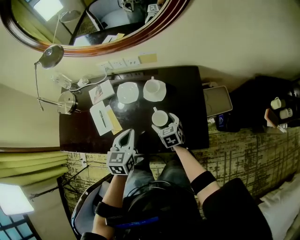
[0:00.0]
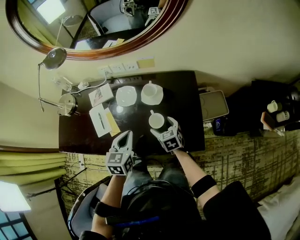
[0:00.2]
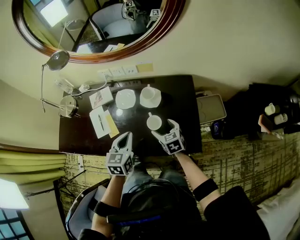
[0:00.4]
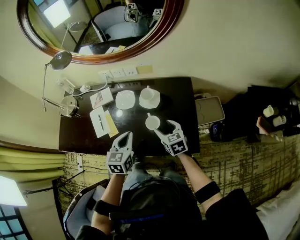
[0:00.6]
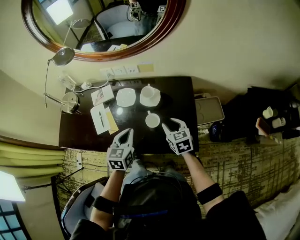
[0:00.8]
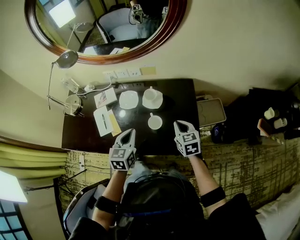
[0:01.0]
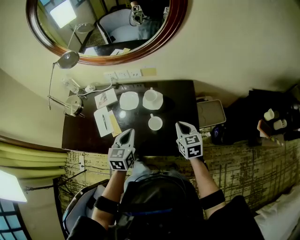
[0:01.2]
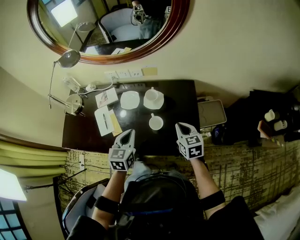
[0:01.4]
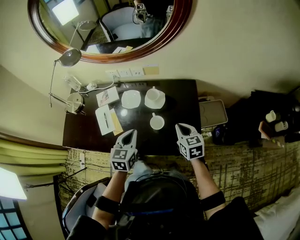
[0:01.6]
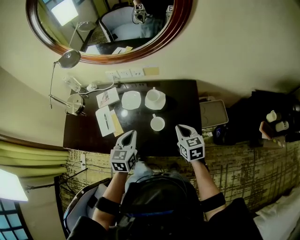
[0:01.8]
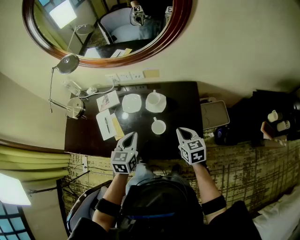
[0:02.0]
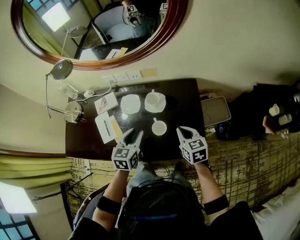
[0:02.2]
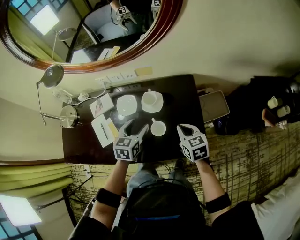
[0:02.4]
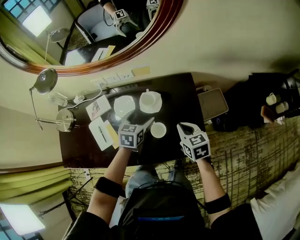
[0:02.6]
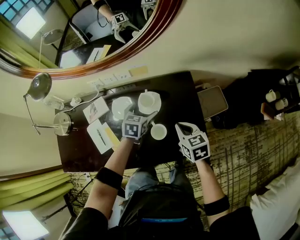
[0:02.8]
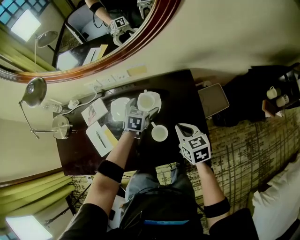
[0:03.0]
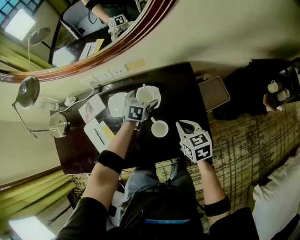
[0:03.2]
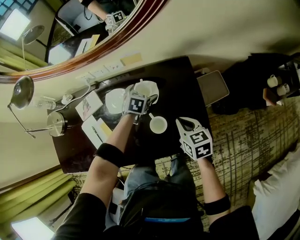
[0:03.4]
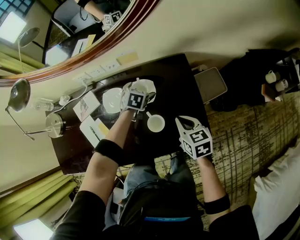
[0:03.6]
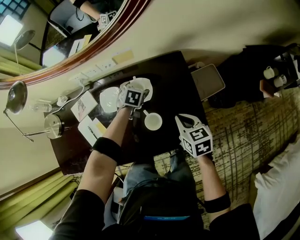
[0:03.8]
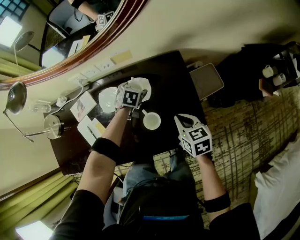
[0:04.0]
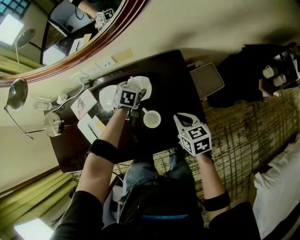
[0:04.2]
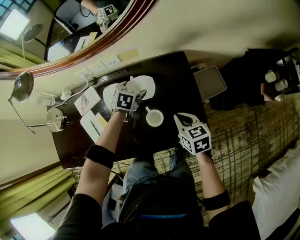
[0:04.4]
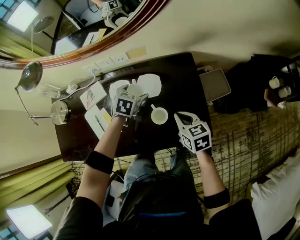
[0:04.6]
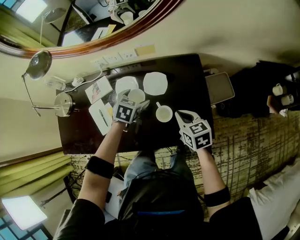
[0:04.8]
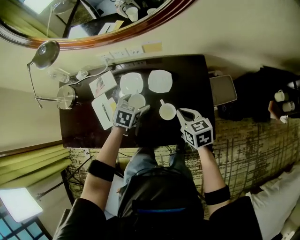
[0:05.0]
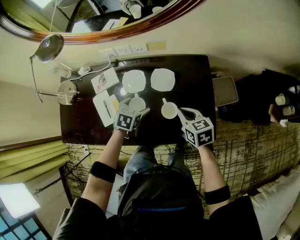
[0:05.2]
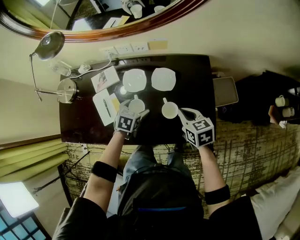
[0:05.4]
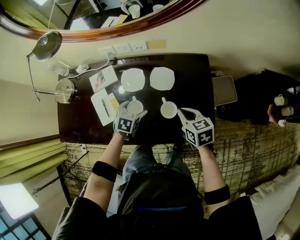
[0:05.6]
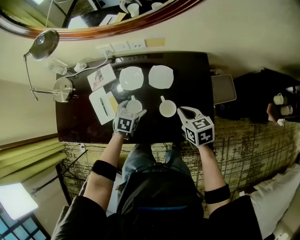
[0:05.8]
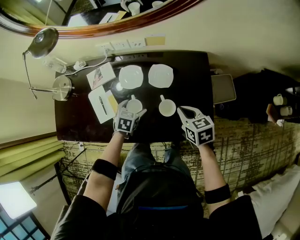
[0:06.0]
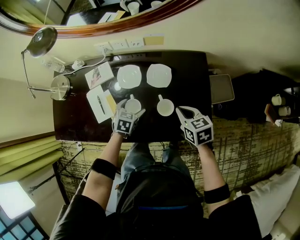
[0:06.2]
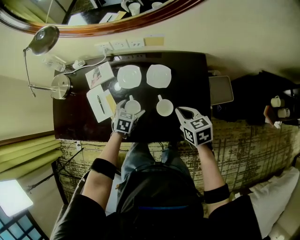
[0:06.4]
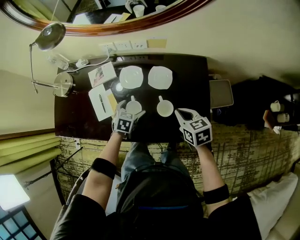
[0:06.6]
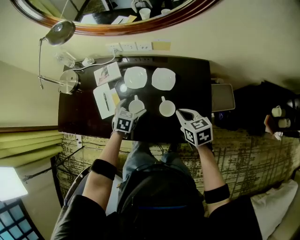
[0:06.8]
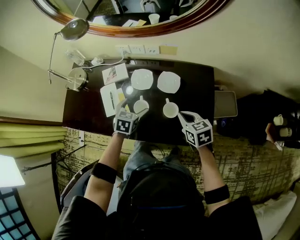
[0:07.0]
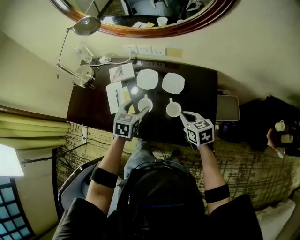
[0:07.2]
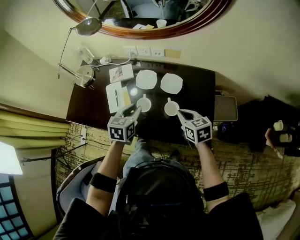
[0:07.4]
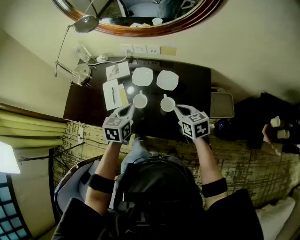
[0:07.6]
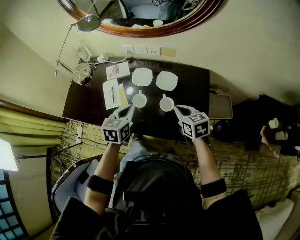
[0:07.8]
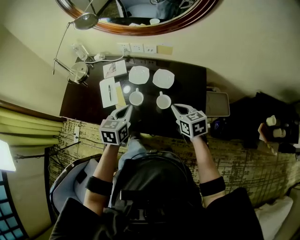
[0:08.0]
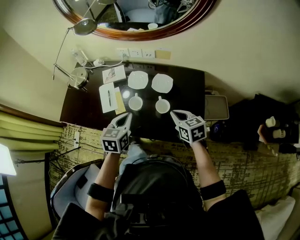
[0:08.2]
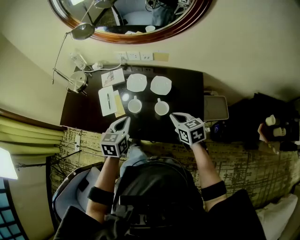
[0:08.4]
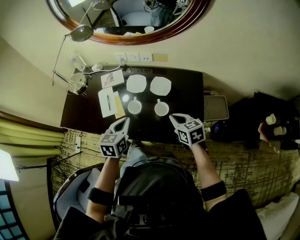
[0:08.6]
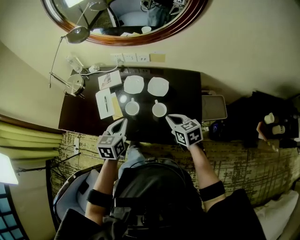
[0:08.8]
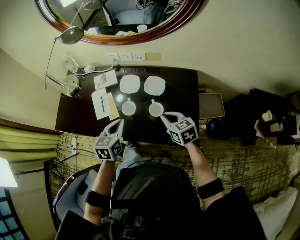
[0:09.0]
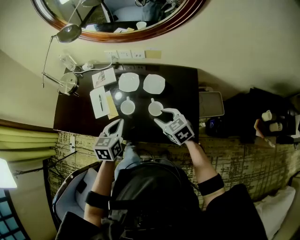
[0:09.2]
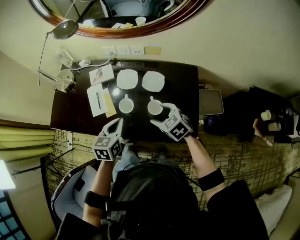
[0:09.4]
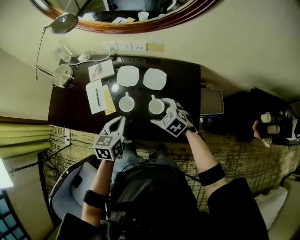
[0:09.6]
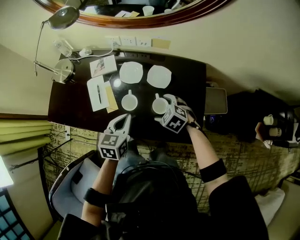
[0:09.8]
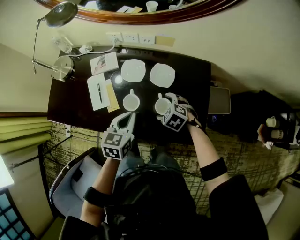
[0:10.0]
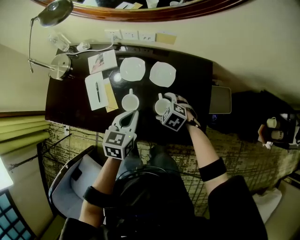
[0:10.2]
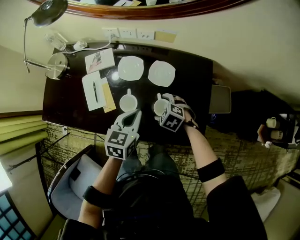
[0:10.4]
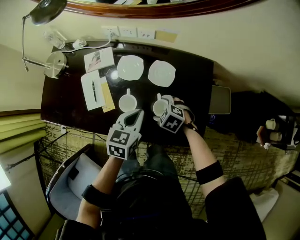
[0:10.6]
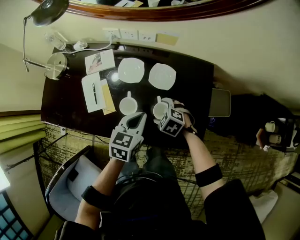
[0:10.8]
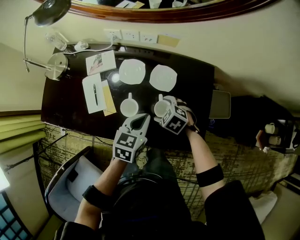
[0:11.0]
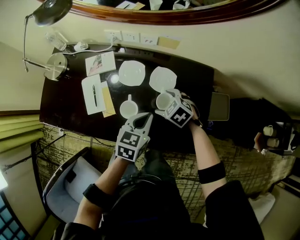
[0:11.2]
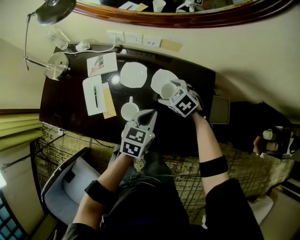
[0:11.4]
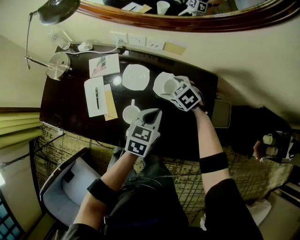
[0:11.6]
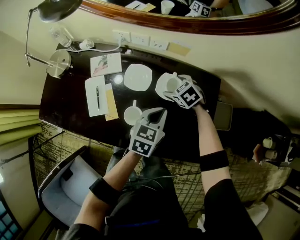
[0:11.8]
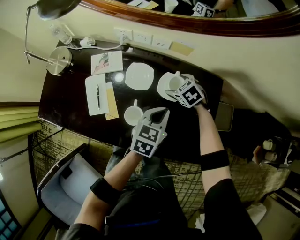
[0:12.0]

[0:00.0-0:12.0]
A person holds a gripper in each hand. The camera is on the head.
0:00.0 to 0:01.6: The left gripper shifts by about 5 cm, while the right gripper is displaced upward and to the right by some 20 cm, and closes.
0:01.6 to 0:03.0: The left gripper heads forward and downward, covering roughly 25 cm, rotates approximately 30 degrees, and opens its fingers; the right gripper is displaced forward by approximately 5 cm.
0:04.4 to 0:06.0: The left gripper heads backward and to the left, covering roughly 20 cm. Meanwhile the right gripper moves approximately 5 cm.
0:06.0 to 0:07.6: The left gripper goes approximately 20 cm upward and backward, rotates approximately 30 degrees, and closes its fingers, while the right gripper is displaced upward by about 5 cm.
0:07.6 to 0:09.0: The grippers make only small movements.
0:09.0 to 0:10.4: The left gripper goes approximately 10 cm to the right, downward and forward. The right gripper is displaced downward by approximately 20 cm, points its fingers some 30 degrees further downward, and opens its fingers.
0:10.4 to 0:12.0: The left gripper shifts approximately 10 cm to the right and forward, while the right gripper travels forward by approximately 20 cm.

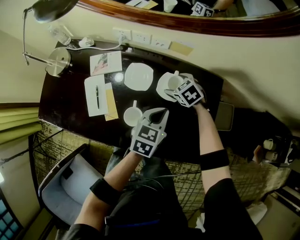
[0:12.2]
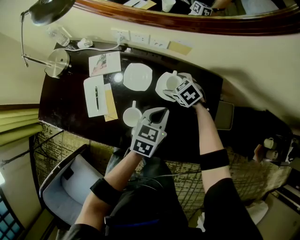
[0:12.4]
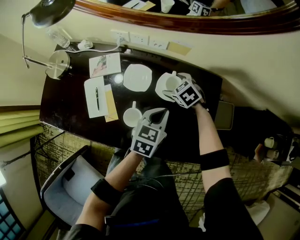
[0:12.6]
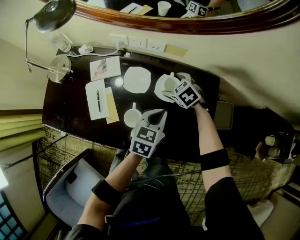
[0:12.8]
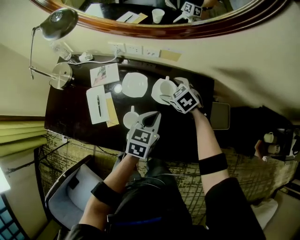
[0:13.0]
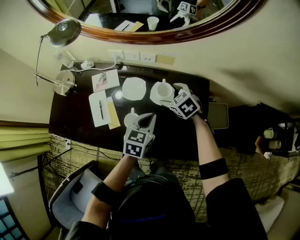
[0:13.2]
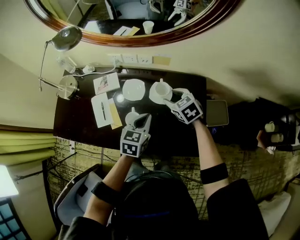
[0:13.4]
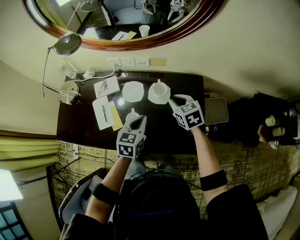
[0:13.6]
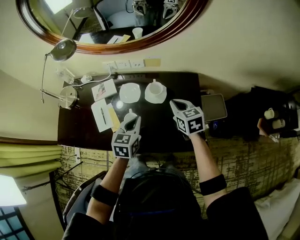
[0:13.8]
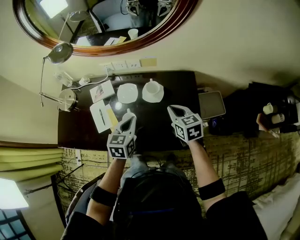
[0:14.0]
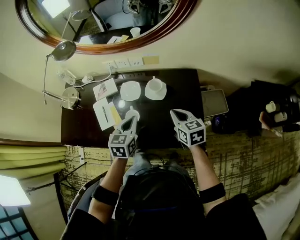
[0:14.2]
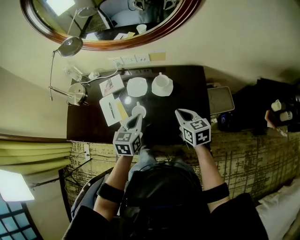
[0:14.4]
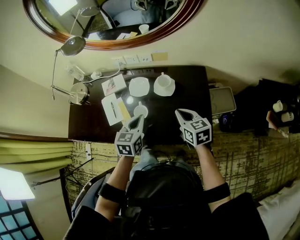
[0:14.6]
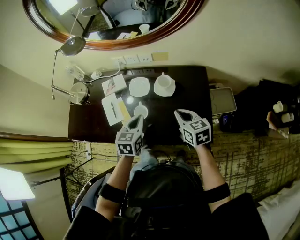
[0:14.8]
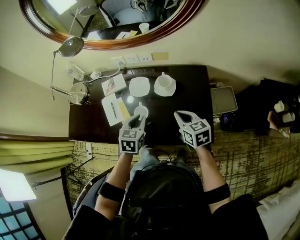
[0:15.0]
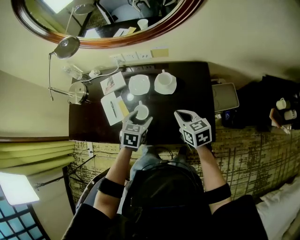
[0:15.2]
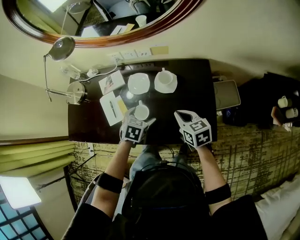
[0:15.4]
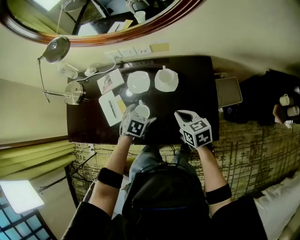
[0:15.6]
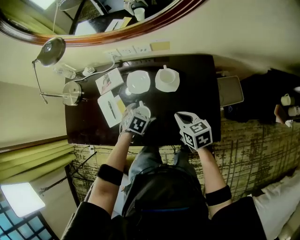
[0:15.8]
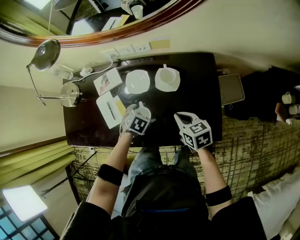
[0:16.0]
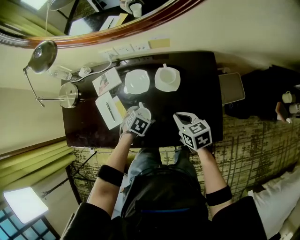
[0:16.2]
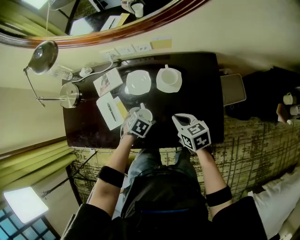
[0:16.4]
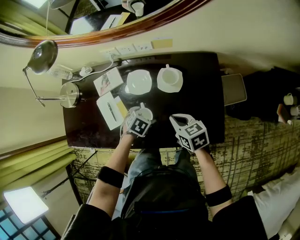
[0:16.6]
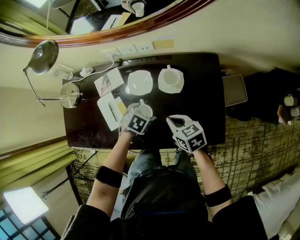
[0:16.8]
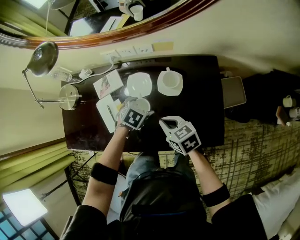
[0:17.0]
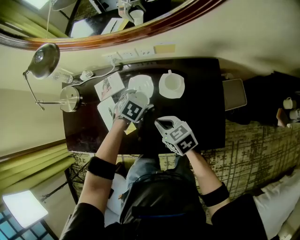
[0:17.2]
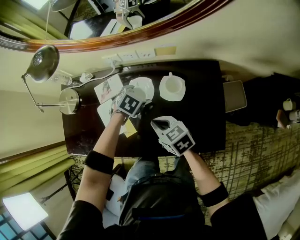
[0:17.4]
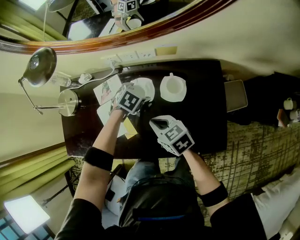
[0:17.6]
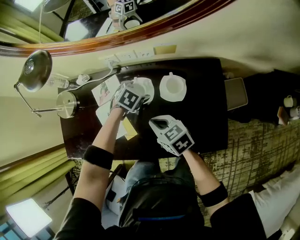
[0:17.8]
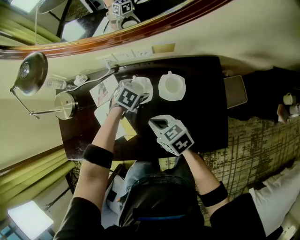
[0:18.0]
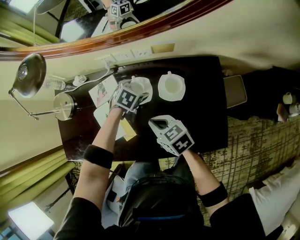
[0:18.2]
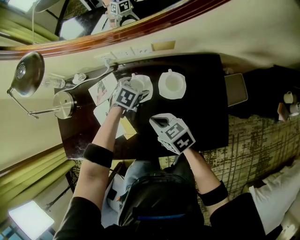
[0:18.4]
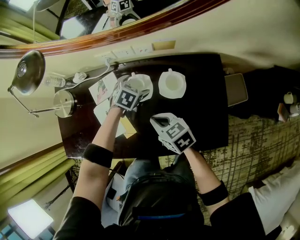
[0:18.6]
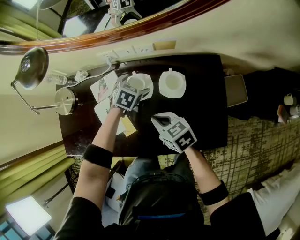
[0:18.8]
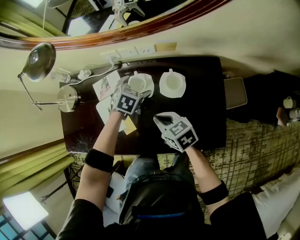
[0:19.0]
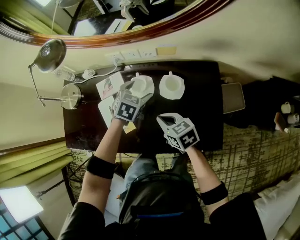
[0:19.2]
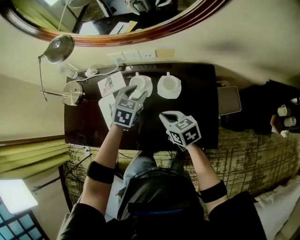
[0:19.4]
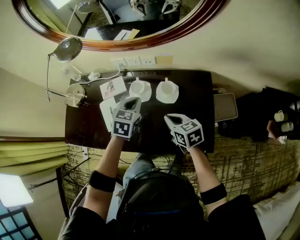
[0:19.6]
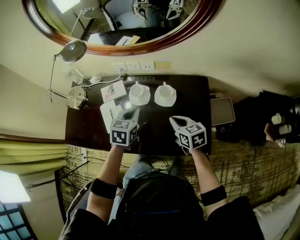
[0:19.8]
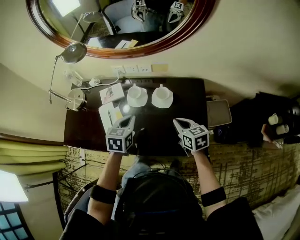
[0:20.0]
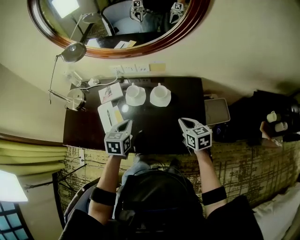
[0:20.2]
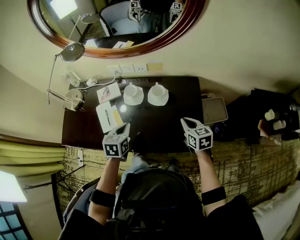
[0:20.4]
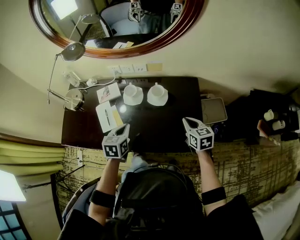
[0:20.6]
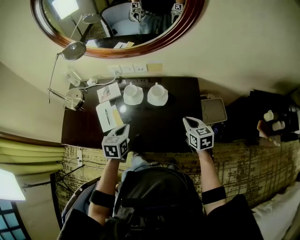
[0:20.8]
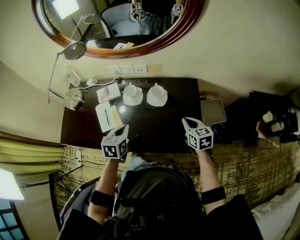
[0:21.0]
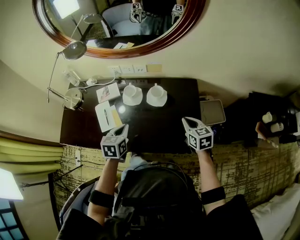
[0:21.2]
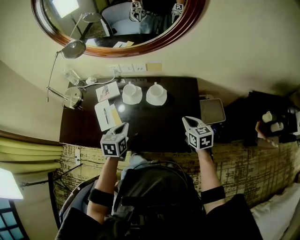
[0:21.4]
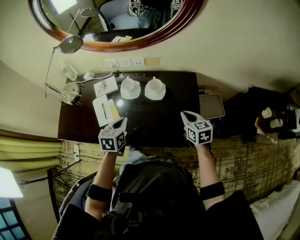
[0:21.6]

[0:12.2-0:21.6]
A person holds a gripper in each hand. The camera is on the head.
0:12.2 to 0:13.8: The left gripper is displaced upward, to the left and backward by approximately 10 cm; the right gripper moves upward and backward, approximately 25 cm, changes its angle by approximately 40 degrees, and closes up.
0:13.8 to 0:15.4: The right gripper heads backward, covering approximately 10 cm; the left gripper goes approximately 10 cm downward, swivels some 30 degrees, and opens its fingers.
0:15.4 to 0:17.0: The right gripper shifts approximately 10 cm to the left and downward, while the left gripper moves forward and downward, some 10 cm.
0:17.0 to 0:18.4: The right gripper shifts roughly 5 cm to the left and forward, while the left gripper is displaced forward by approximately 15 cm.
0:18.4 to 0:20.0: The right gripper moves to the right, backward and upward, about 20 cm. Meanwhile the left gripper goes approximately 25 cm backward and upward, changes its angle by roughly 40 degrees, and closes its fingers.
0:20.0 to 0:21.6: The left gripper ends up some 5 cm from where it was. Meanwhile the right gripper goes about 5 cm to the right.

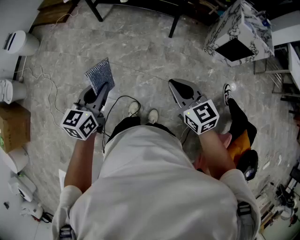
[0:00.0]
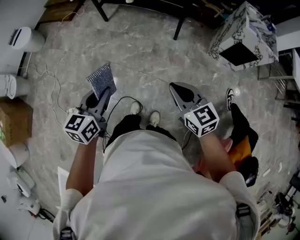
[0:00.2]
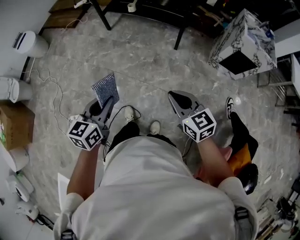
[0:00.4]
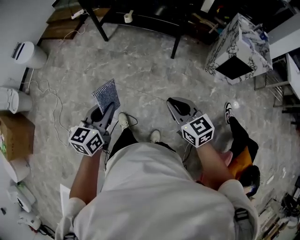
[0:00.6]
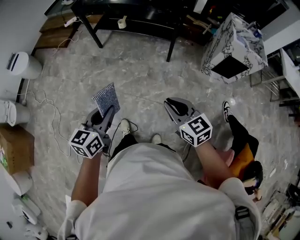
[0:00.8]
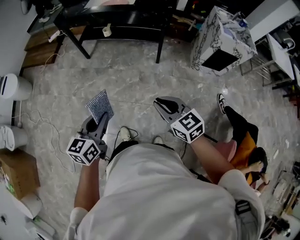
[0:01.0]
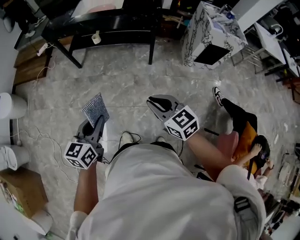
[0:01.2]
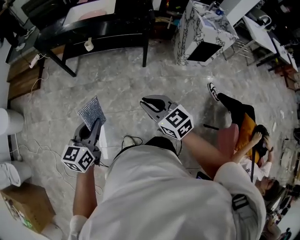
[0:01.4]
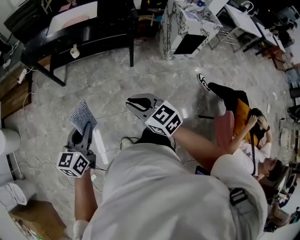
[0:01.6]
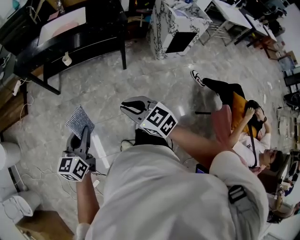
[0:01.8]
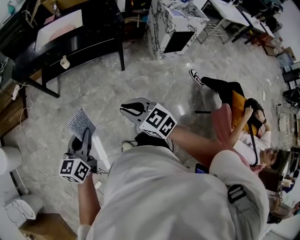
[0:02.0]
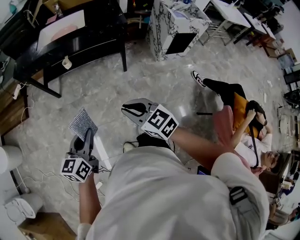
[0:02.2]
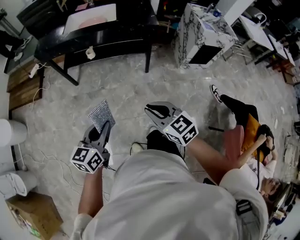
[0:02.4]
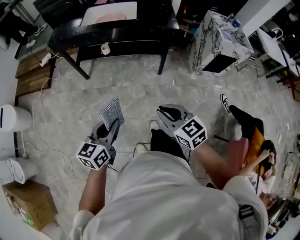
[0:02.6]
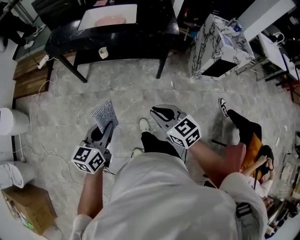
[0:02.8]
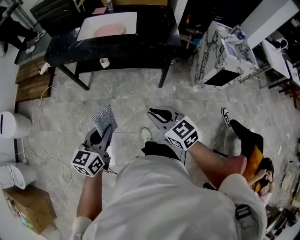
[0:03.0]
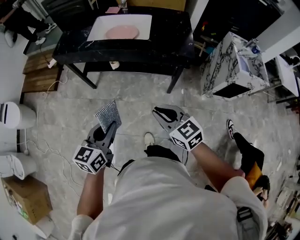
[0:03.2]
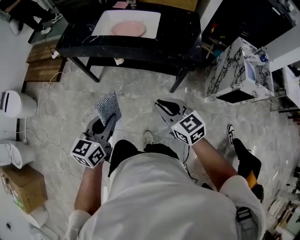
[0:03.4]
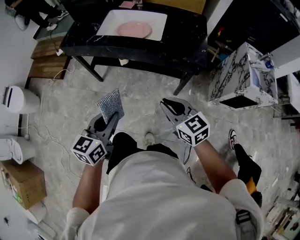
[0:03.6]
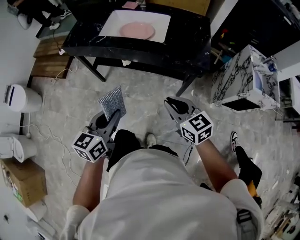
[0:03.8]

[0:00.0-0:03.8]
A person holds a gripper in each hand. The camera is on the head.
0:00.0 to 0:01.2: Both grippers travel together forward and to the left, roughly 15 cm.
0:01.2 to 0:02.6: The left gripper travels forward and to the left by roughly 10 cm. The right gripper heads to the left and forward, covering some 10 cm.
0:02.6 to 0:03.8: Both grippers move forward, some 25 cm.
